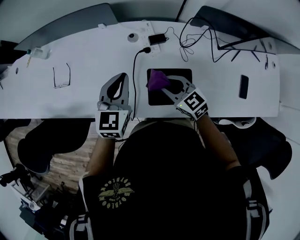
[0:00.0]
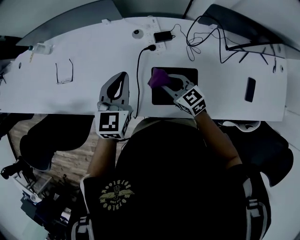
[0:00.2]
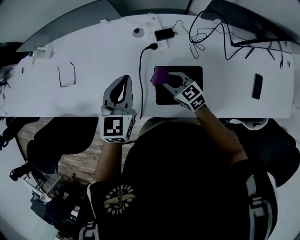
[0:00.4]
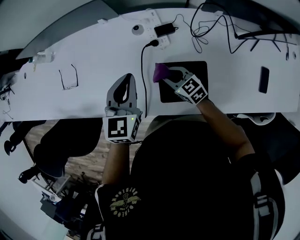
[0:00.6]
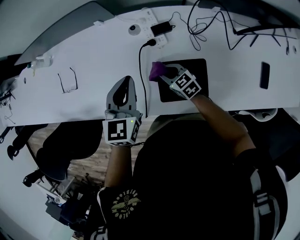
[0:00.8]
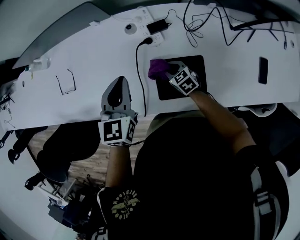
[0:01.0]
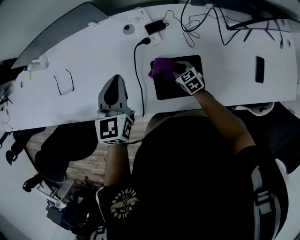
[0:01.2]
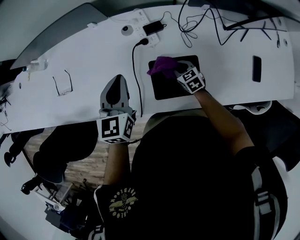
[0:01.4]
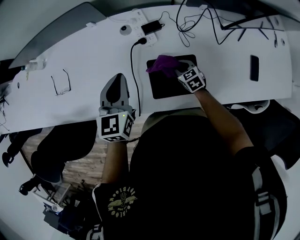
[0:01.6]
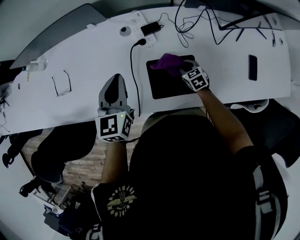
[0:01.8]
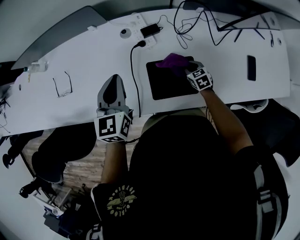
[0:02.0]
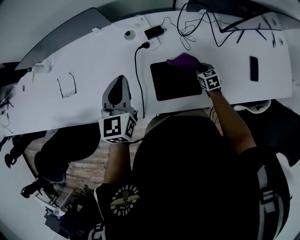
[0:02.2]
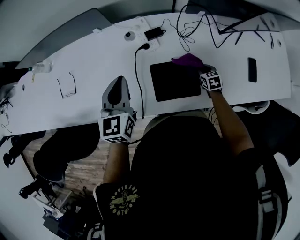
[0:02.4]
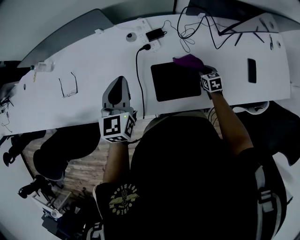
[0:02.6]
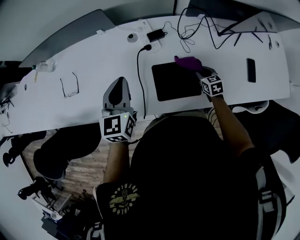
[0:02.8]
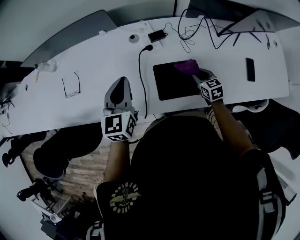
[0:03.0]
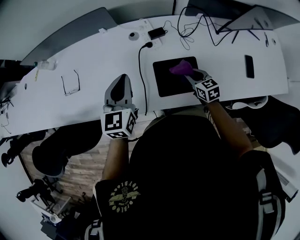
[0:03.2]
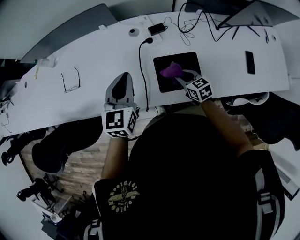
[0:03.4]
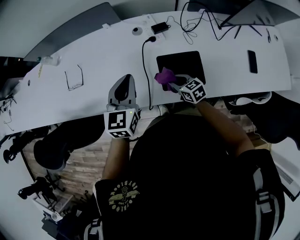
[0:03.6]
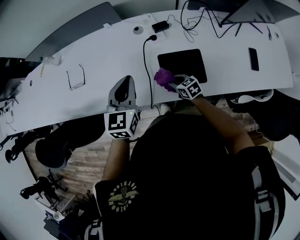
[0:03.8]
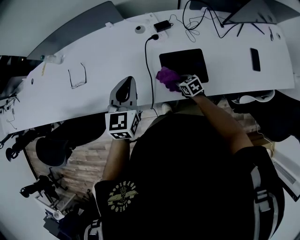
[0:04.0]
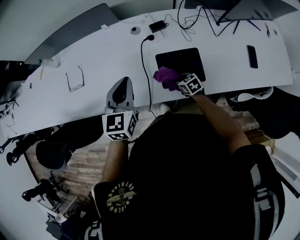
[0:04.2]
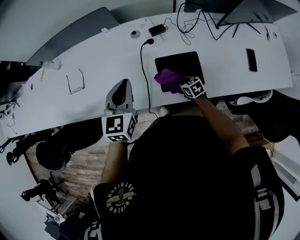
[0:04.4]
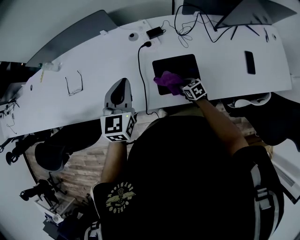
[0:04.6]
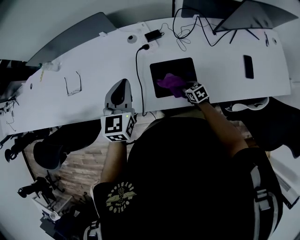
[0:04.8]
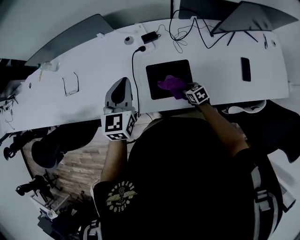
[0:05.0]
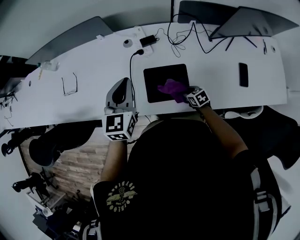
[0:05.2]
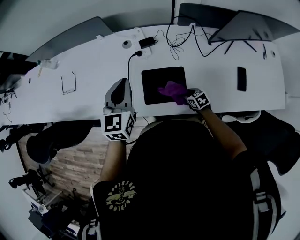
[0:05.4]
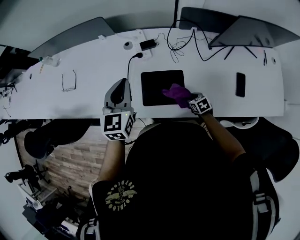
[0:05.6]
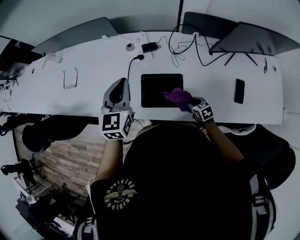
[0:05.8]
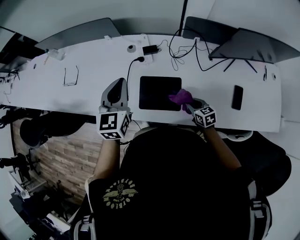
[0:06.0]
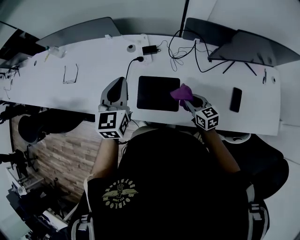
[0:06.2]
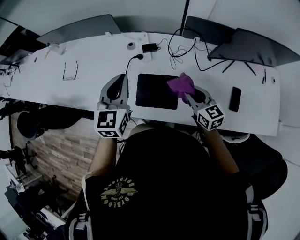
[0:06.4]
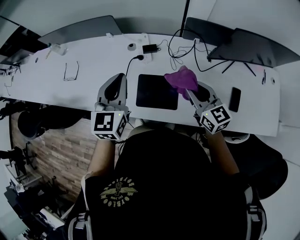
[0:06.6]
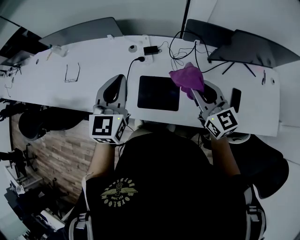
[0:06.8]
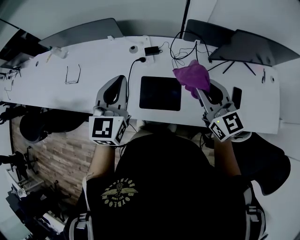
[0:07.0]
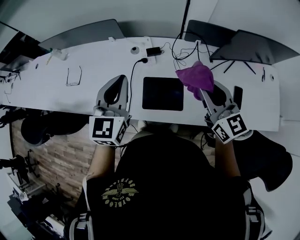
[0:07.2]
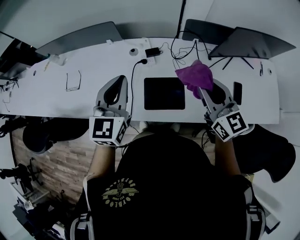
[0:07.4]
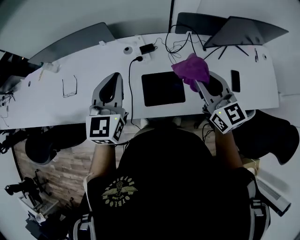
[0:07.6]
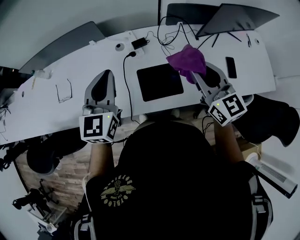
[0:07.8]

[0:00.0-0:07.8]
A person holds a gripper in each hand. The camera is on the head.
0:00.0 to 0:01.6: The right gripper heads downward and to the right, covering some 25 cm, and swivels about 30 degrees.
0:01.6 to 0:03.2: The left gripper ends up about 5 cm from where it was; the right gripper shifts some 15 cm upward and backward, and moves about 15 cm to the right and comes back.
0:03.2 to 0:04.6: The right gripper travels downward by about 10 cm, and travels to the left and back again, approximately 15 cm each way.
0:04.6 to 0:06.2: The right gripper heads upward and to the right, covering about 20 cm, and swivels approximately 20 degrees. The left gripper moves to the right, some 10 cm.
0:06.2 to 0:07.8: The left gripper moves upward and to the left, approximately 10 cm. Meanwhile the right gripper travels upward by about 25 cm, and rotates about 30 degrees.

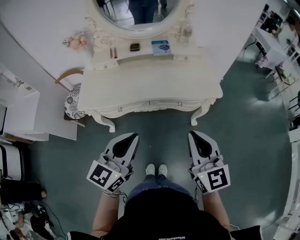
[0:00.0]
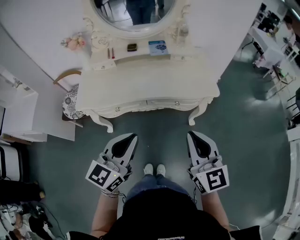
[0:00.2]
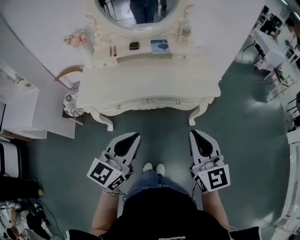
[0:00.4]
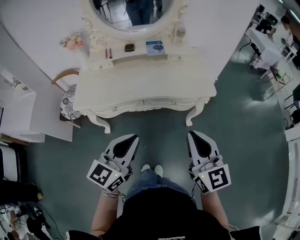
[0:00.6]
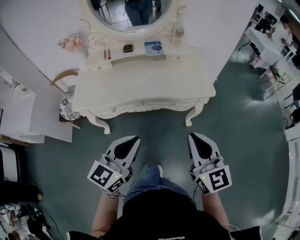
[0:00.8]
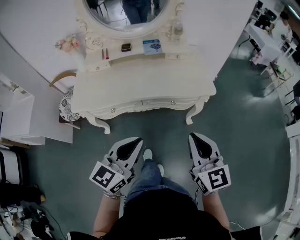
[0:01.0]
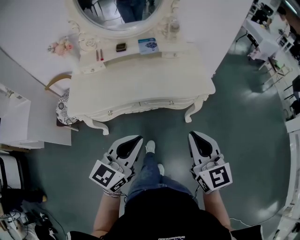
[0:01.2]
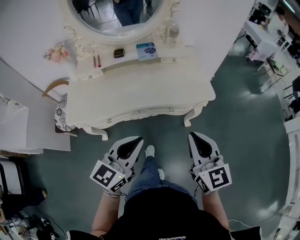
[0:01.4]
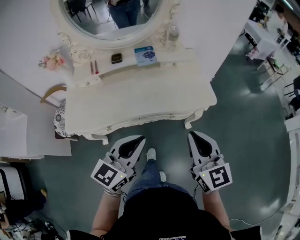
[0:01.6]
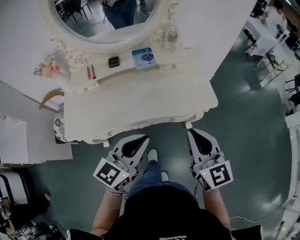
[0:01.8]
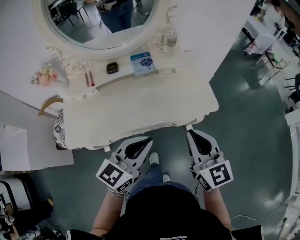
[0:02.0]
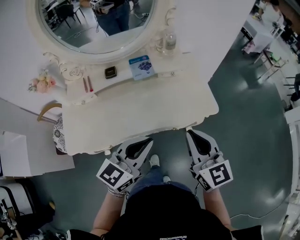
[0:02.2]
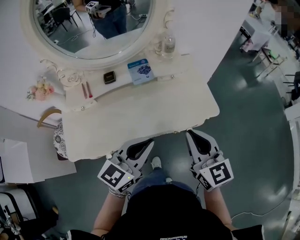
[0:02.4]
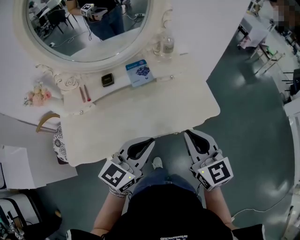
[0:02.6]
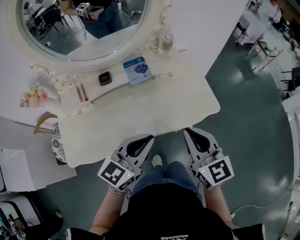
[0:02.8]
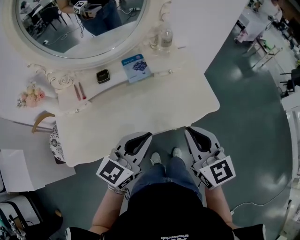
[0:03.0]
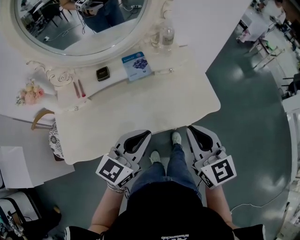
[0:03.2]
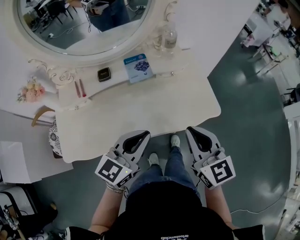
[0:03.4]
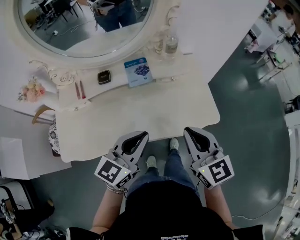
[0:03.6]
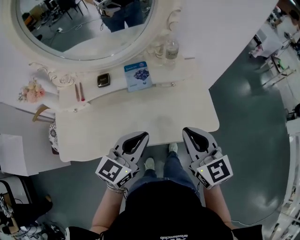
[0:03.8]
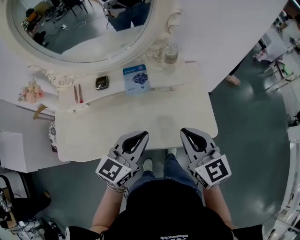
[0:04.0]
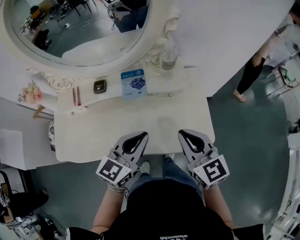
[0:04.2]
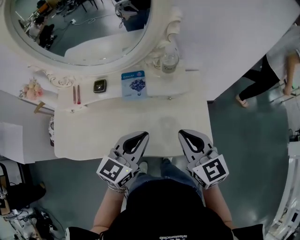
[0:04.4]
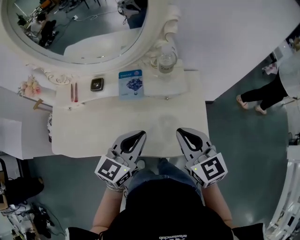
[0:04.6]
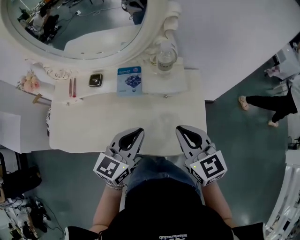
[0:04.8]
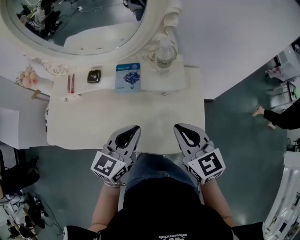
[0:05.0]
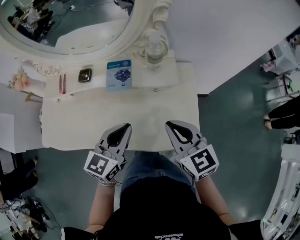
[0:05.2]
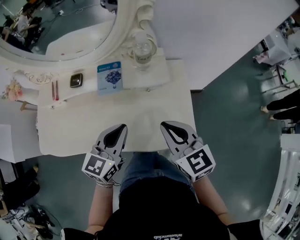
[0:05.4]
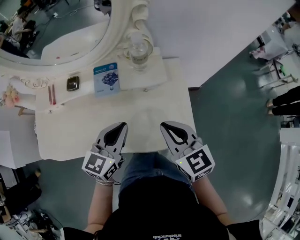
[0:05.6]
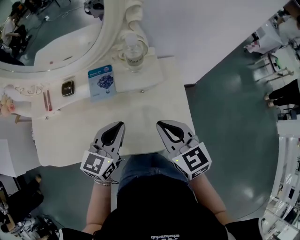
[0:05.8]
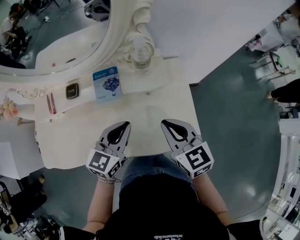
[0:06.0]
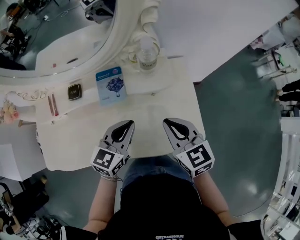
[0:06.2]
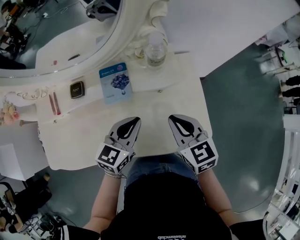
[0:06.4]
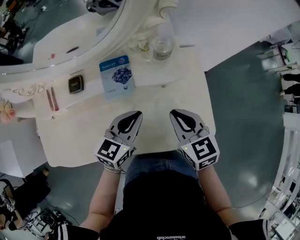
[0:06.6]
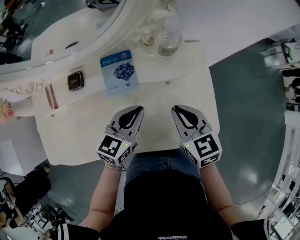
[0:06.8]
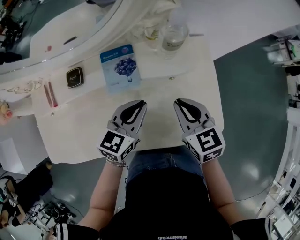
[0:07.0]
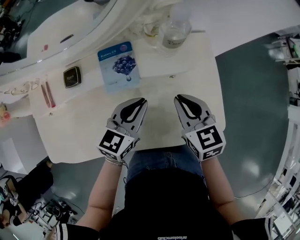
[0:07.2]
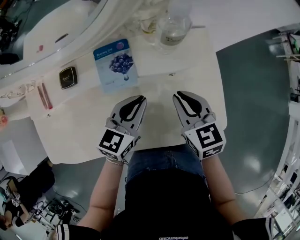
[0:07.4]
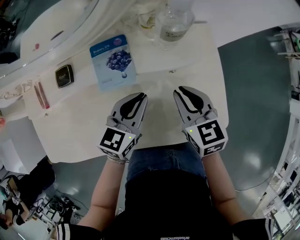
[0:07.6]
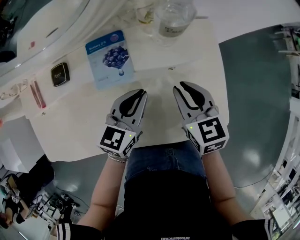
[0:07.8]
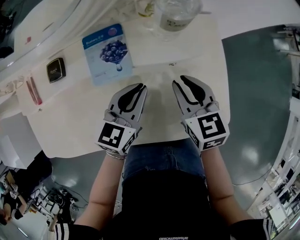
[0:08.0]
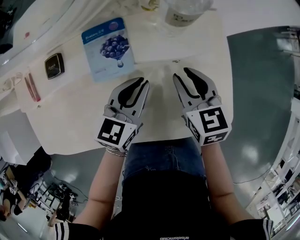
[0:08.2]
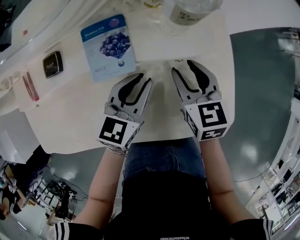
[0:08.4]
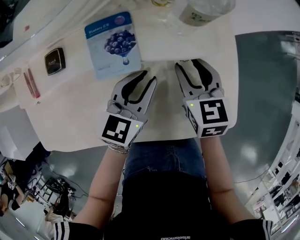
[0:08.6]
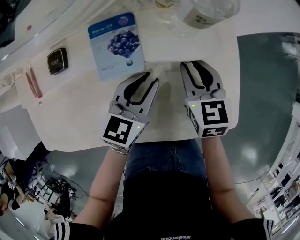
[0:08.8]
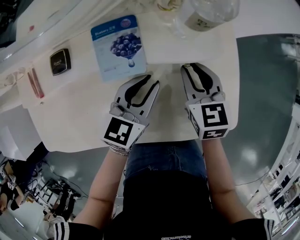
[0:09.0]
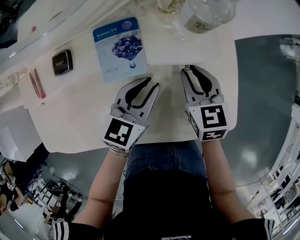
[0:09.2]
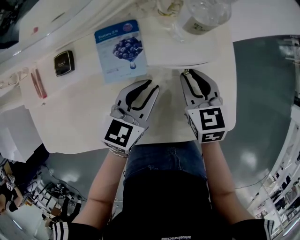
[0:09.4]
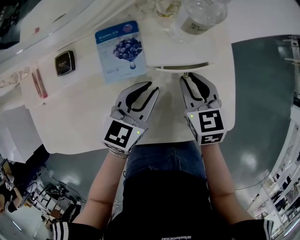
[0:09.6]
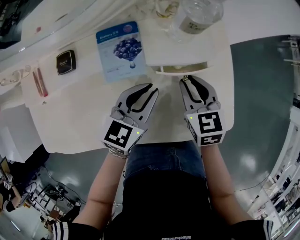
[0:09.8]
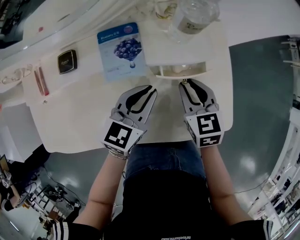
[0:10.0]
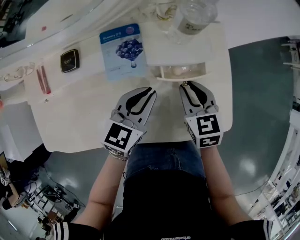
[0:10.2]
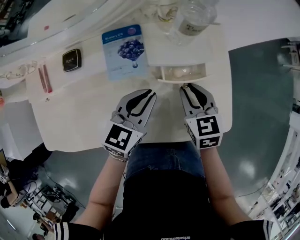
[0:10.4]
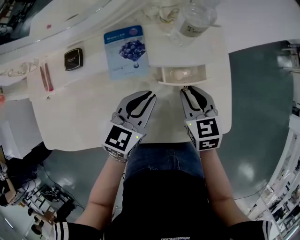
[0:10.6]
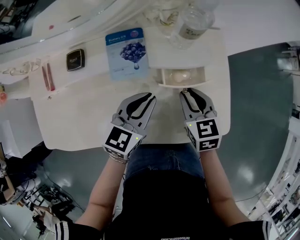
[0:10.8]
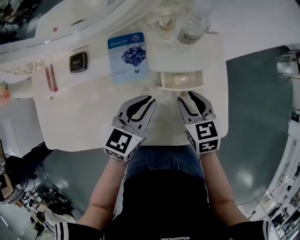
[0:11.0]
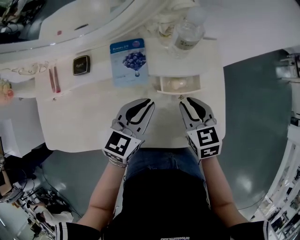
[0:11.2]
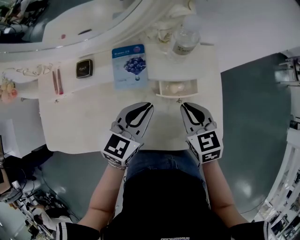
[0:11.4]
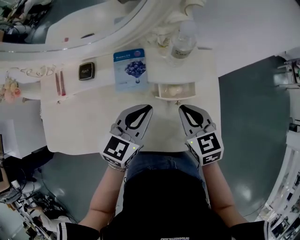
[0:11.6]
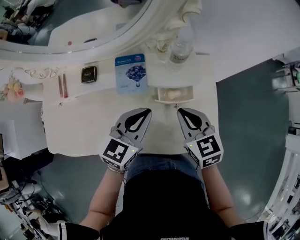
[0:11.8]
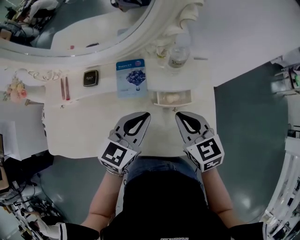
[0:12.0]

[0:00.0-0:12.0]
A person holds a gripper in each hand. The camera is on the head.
0:00.0 to 0:01.6: The grippers both shift forward by approximately 10 cm.
0:01.6 to 0:03.0: The left gripper heads forward, covering roughly 15 cm; the right gripper shifts about 15 cm forward and to the left.
0:03.0 to 0:04.4: The two grippers go about 15 cm forward and to the right. The right gripper swivels approximately 20 degrees.
0:04.4 to 0:06.0: The left gripper shifts roughly 10 cm forward and downward, while the right gripper shifts by about 5 cm.
0:06.0 to 0:07.6: Both grippers move downward and forward, approximately 15 cm.
0:07.6 to 0:09.0: The right gripper heads forward, covering some 5 cm.
0:09.0 to 0:10.4: The right gripper goes about 5 cm backward.
0:10.4 to 0:12.0: Both grippers travel together upward, about 10 cm.

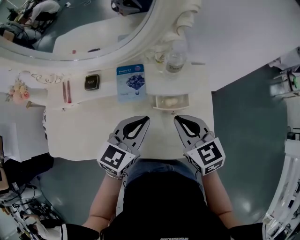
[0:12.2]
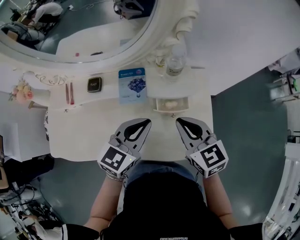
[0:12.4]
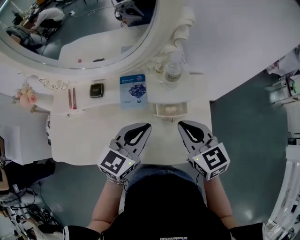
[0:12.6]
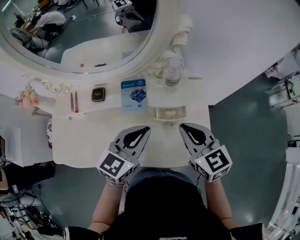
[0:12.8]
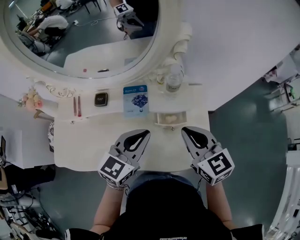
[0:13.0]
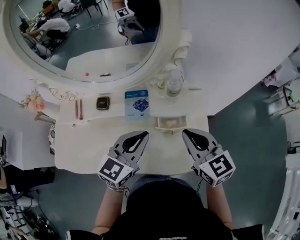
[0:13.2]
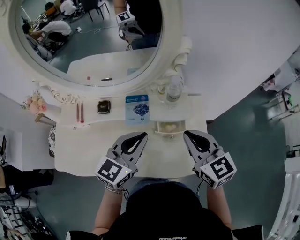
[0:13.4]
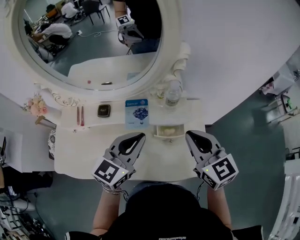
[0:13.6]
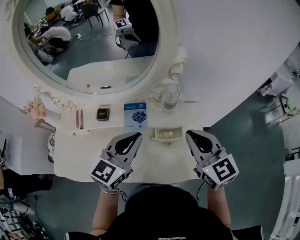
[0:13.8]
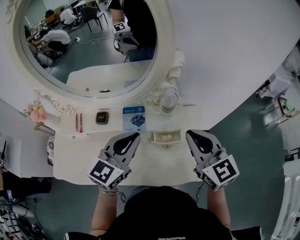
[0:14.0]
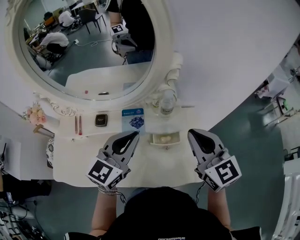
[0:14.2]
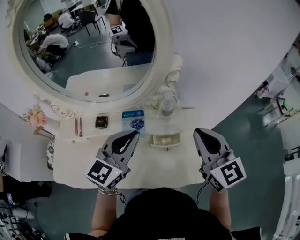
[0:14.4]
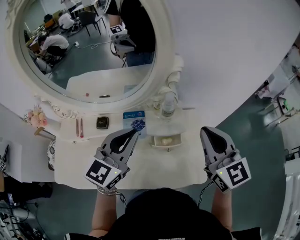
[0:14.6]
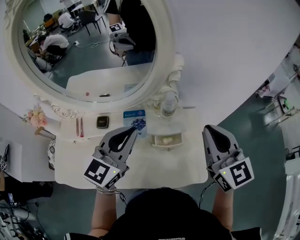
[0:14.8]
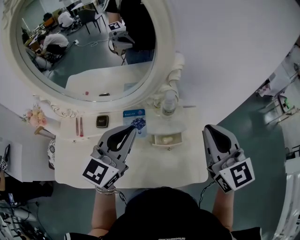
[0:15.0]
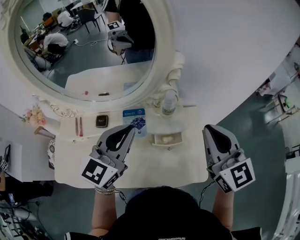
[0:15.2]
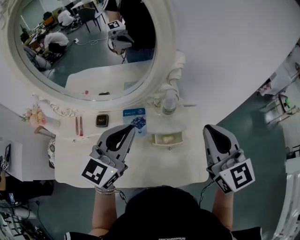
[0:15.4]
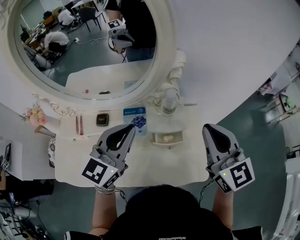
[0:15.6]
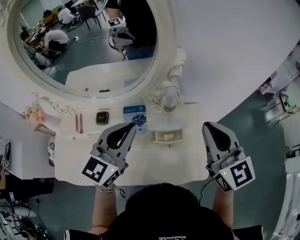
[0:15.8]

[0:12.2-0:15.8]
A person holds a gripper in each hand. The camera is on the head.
0:12.2 to 0:14.0: The grippers both shift upward by some 15 cm.
0:14.0 to 0:15.8: The right gripper shifts some 5 cm upward.
